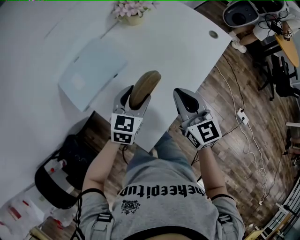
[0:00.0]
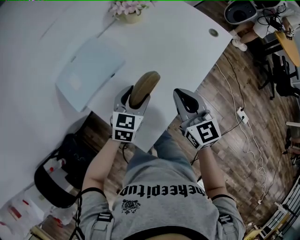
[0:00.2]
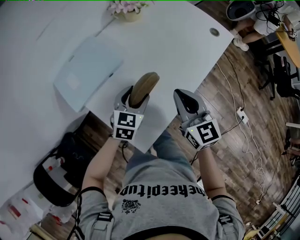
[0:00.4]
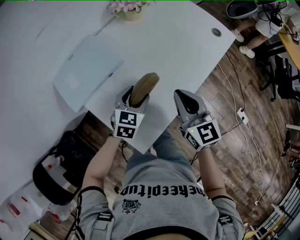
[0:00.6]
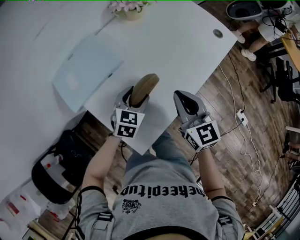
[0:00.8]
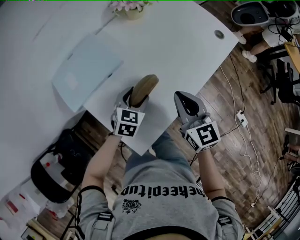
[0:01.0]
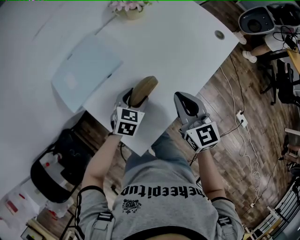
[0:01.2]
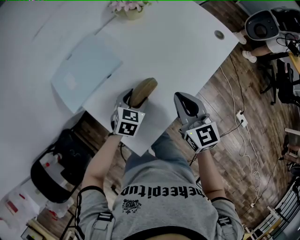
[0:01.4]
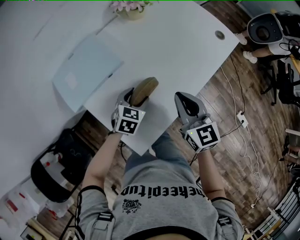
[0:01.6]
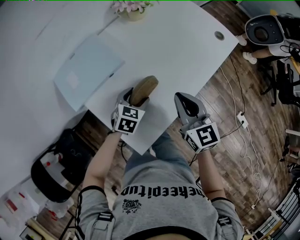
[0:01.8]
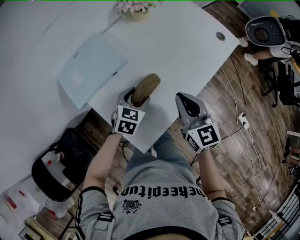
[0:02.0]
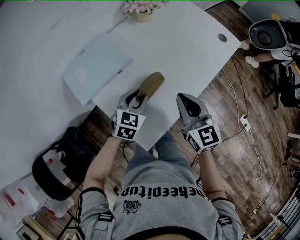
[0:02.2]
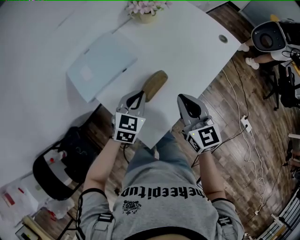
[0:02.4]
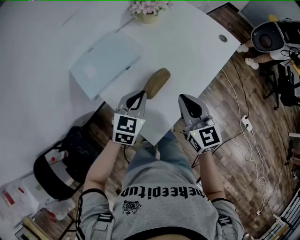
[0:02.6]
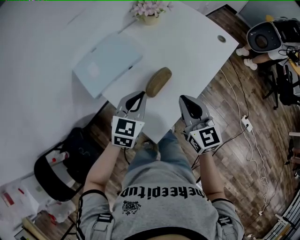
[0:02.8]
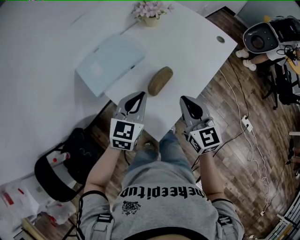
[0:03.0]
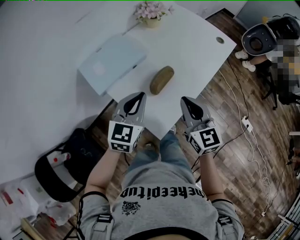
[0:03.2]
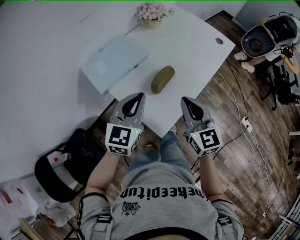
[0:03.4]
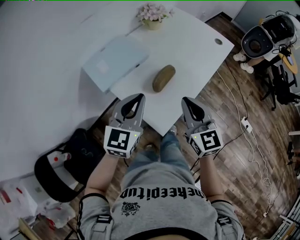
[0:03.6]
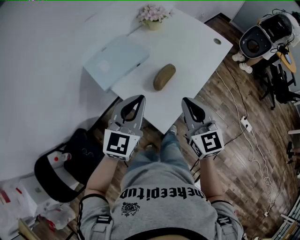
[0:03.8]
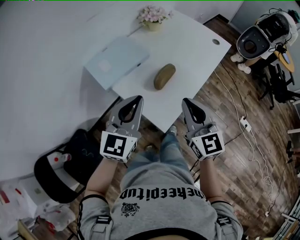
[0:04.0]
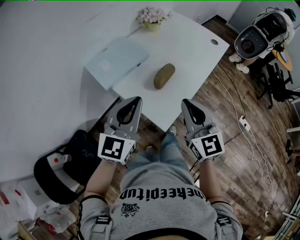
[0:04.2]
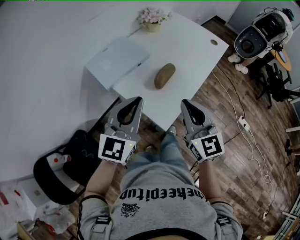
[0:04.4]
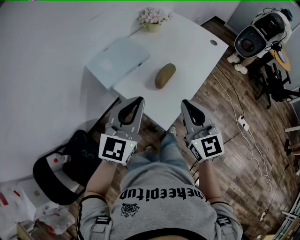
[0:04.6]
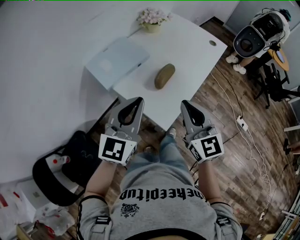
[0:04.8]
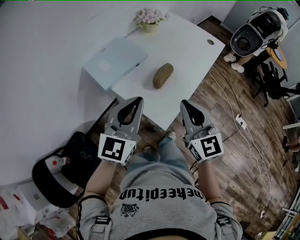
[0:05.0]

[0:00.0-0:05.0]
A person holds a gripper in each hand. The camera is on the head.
0:00.0 to 0:01.6: The right gripper moves some 5 cm. Meanwhile the left gripper heads downward, covering about 10 cm.
0:01.6 to 0:03.4: The right gripper moves backward and to the left, approximately 15 cm; the left gripper is displaced upward, backward and to the left by approximately 25 cm, tilts its fingers some 30 degrees upward, and closes its fingers.
0:03.4 to 0:05.0: The two grippers go some 10 cm backward and upward.

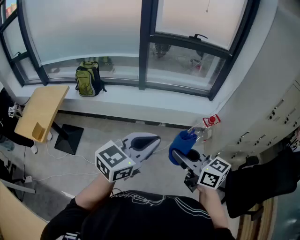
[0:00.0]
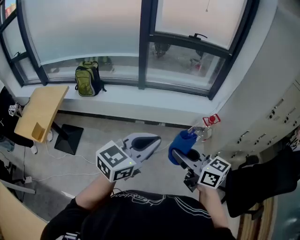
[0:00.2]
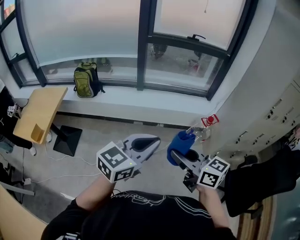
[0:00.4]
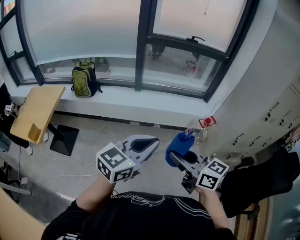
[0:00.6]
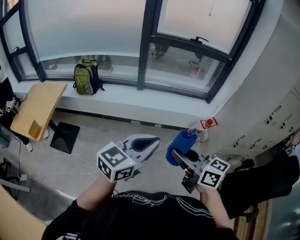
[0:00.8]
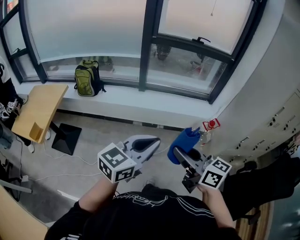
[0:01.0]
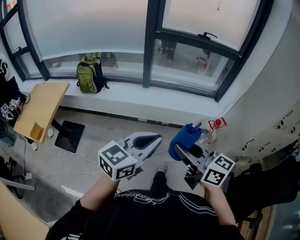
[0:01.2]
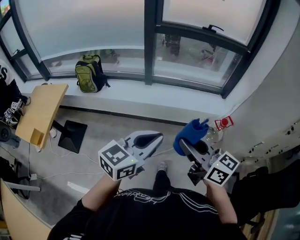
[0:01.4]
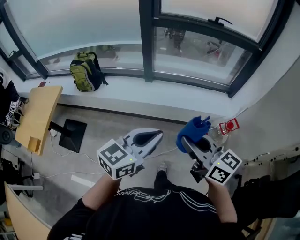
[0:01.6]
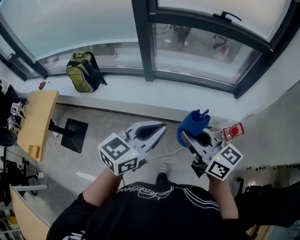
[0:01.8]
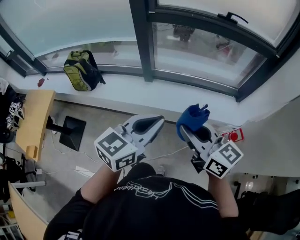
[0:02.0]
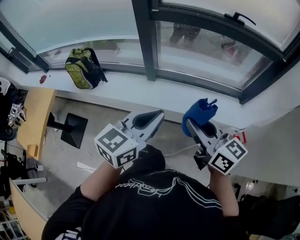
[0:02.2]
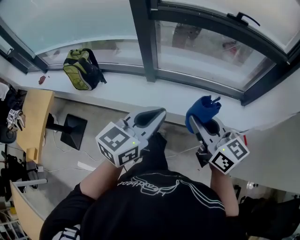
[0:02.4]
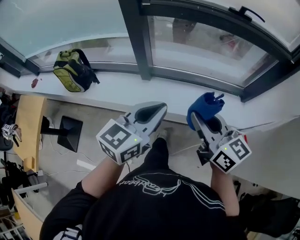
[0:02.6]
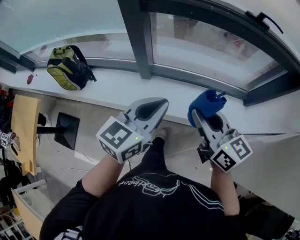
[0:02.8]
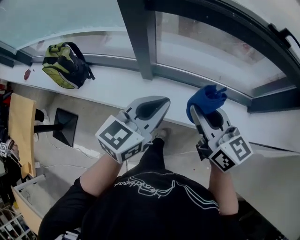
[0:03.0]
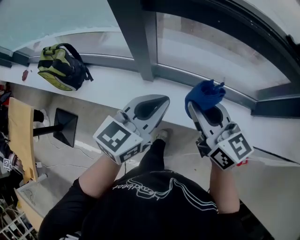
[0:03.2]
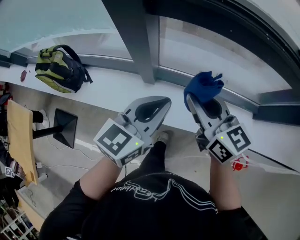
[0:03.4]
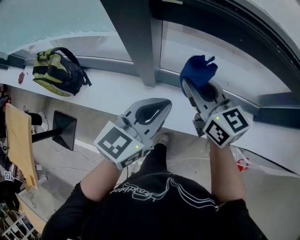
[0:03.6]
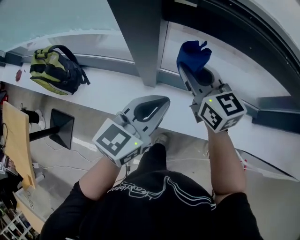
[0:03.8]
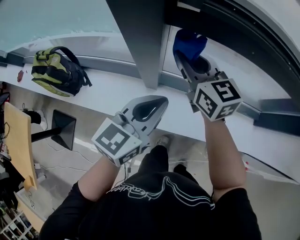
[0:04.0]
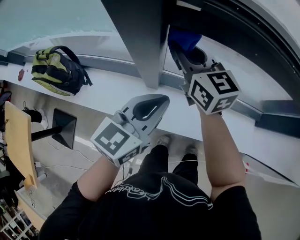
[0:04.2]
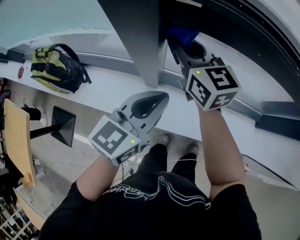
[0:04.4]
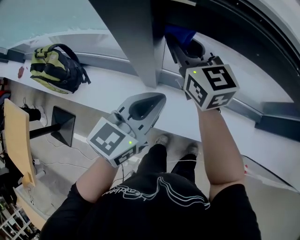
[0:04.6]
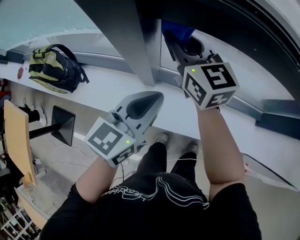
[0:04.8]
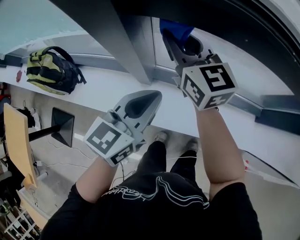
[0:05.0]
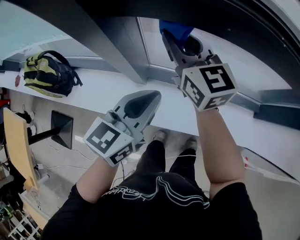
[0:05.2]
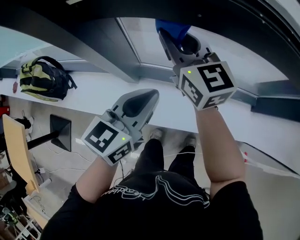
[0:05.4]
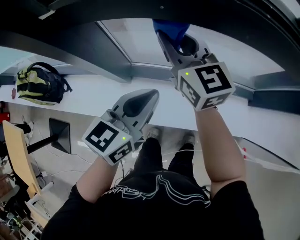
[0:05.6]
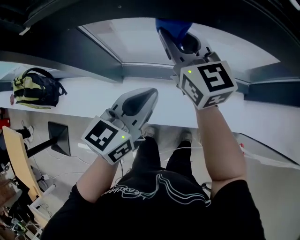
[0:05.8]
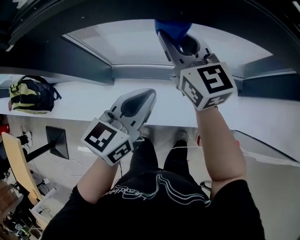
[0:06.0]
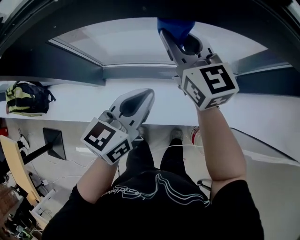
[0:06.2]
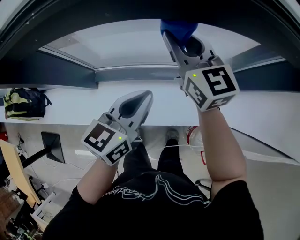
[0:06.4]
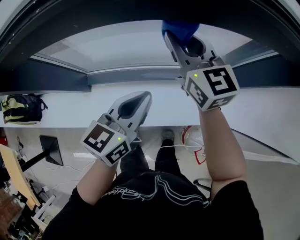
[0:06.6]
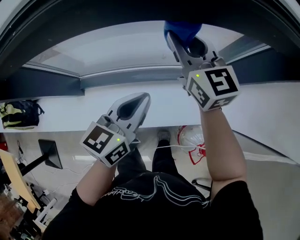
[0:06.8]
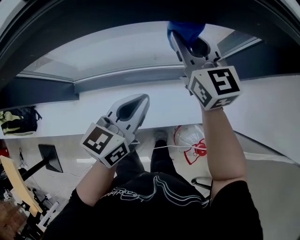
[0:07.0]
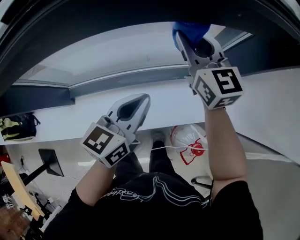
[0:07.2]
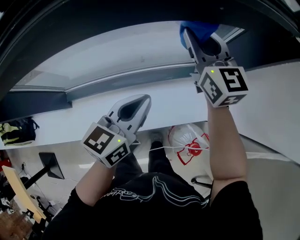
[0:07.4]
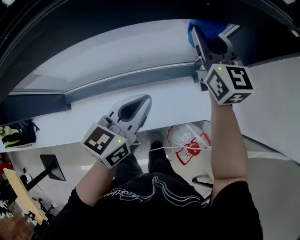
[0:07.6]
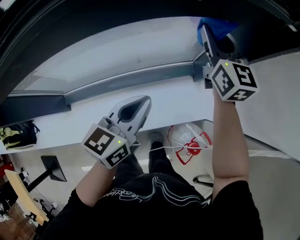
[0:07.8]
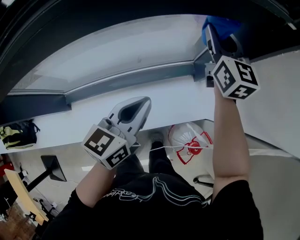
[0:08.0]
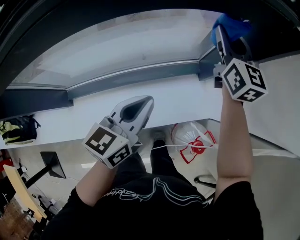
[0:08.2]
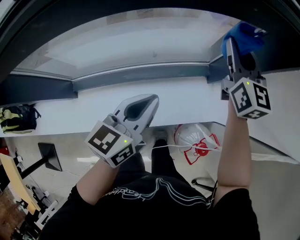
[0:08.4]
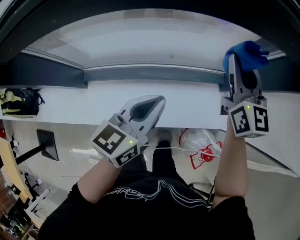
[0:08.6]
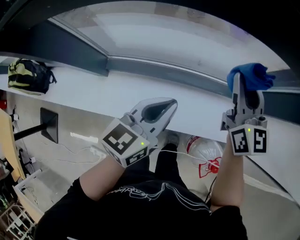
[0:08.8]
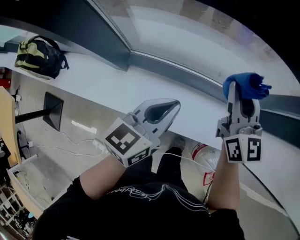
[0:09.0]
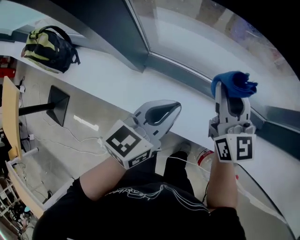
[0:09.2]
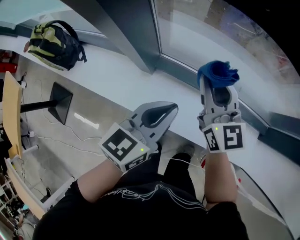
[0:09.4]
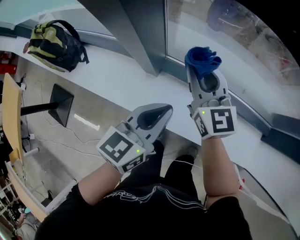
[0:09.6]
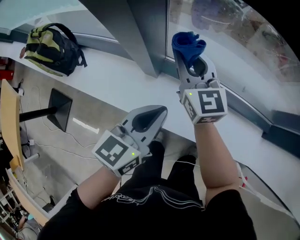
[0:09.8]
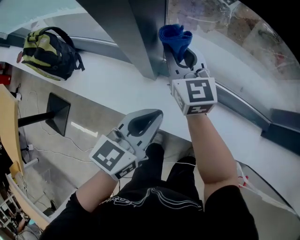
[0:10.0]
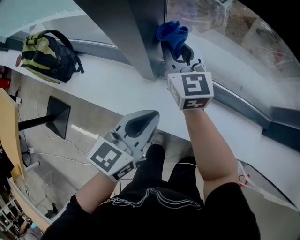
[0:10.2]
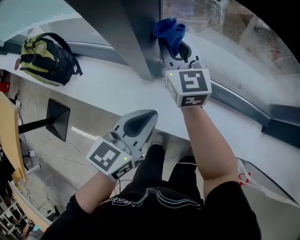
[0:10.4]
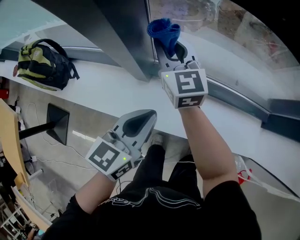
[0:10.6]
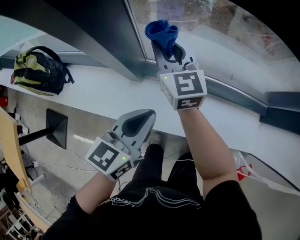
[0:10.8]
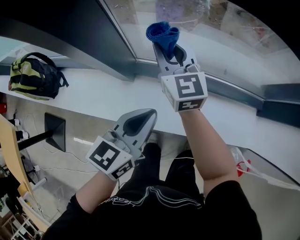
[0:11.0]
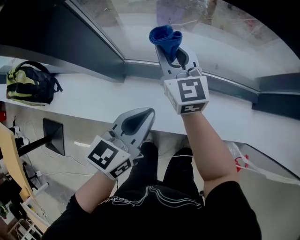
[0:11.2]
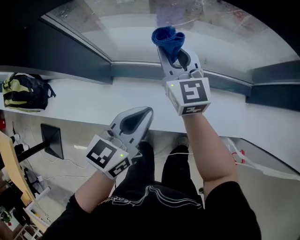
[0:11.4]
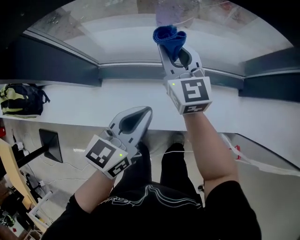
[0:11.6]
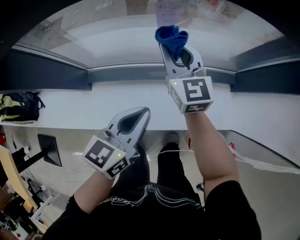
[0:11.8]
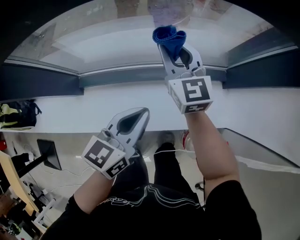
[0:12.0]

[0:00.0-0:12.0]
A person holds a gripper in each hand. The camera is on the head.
0:00.0 to 0:01.6: The two grippers go some 30 cm forward.
0:01.6 to 0:03.0: The two grippers travel together, forward, some 50 cm.
0:03.0 to 0:04.4: The right gripper is displaced forward and to the left by approximately 35 cm; the left gripper travels forward by about 15 cm.
0:04.4 to 0:06.0: Both grippers travel together to the right, about 25 cm.
0:06.0 to 0:07.6: Both grippers move to the right, approximately 35 cm. The right gripper rotates approximately 20 degrees.
0:07.6 to 0:09.0: The left gripper heads to the left, covering roughly 25 cm. The right gripper goes approximately 30 cm to the left and backward.
0:09.0 to 0:10.4: The left gripper travels to the left by some 25 cm, while the right gripper travels to the left by about 40 cm.
0:10.4 to 0:12.0: The two grippers go about 40 cm to the right.

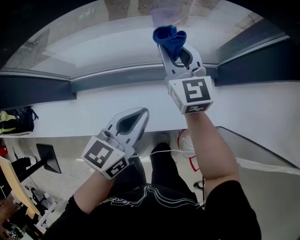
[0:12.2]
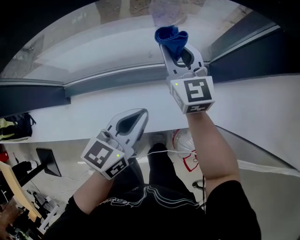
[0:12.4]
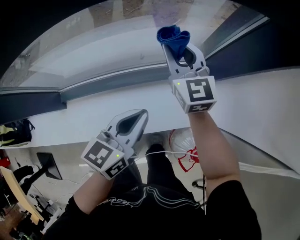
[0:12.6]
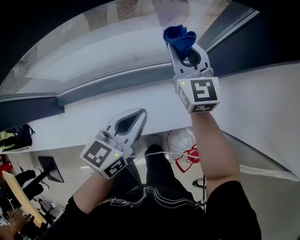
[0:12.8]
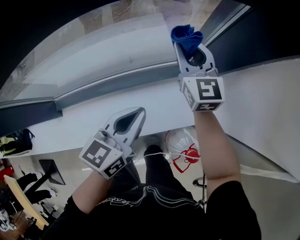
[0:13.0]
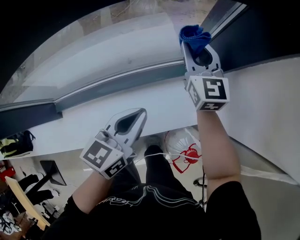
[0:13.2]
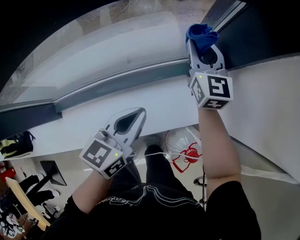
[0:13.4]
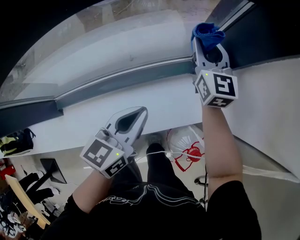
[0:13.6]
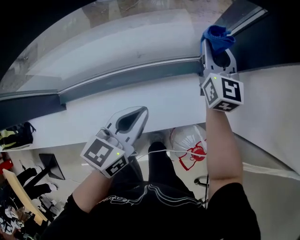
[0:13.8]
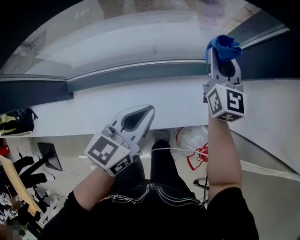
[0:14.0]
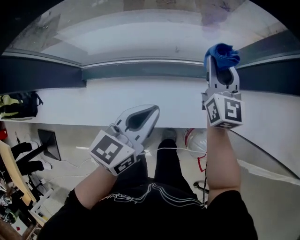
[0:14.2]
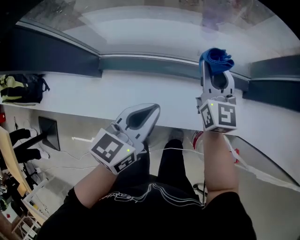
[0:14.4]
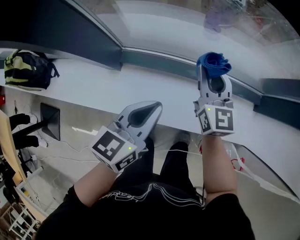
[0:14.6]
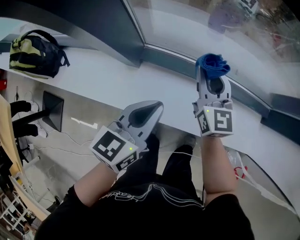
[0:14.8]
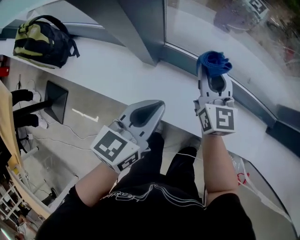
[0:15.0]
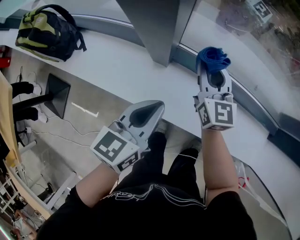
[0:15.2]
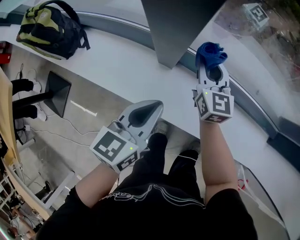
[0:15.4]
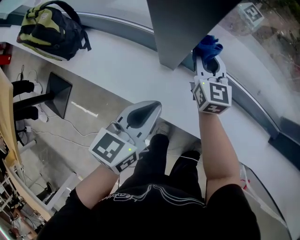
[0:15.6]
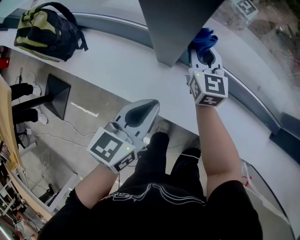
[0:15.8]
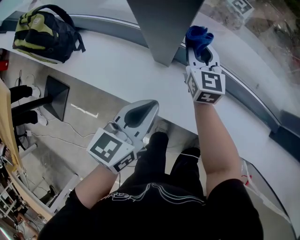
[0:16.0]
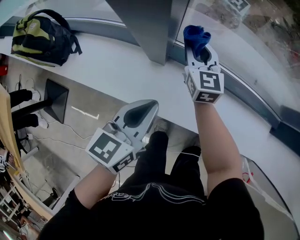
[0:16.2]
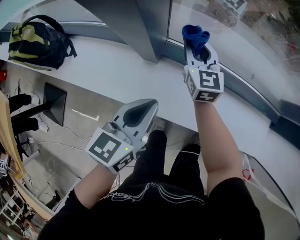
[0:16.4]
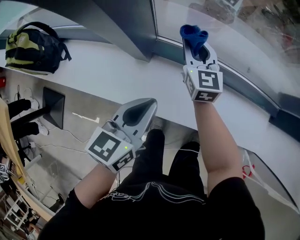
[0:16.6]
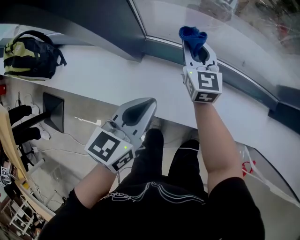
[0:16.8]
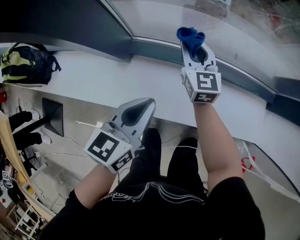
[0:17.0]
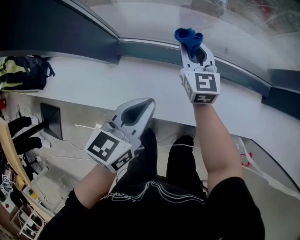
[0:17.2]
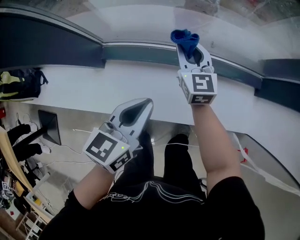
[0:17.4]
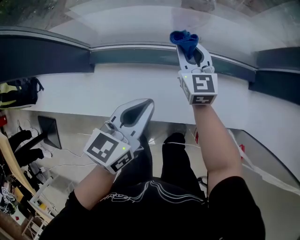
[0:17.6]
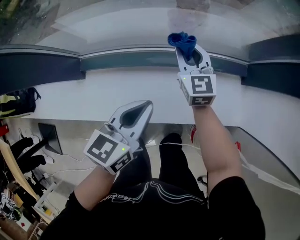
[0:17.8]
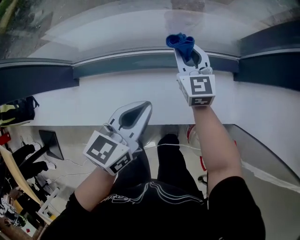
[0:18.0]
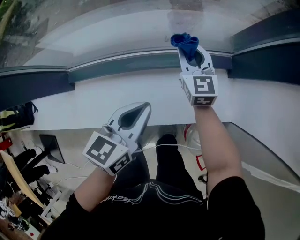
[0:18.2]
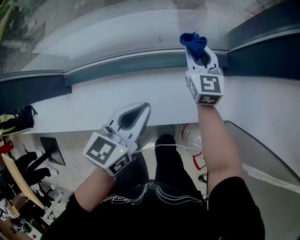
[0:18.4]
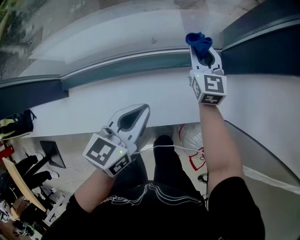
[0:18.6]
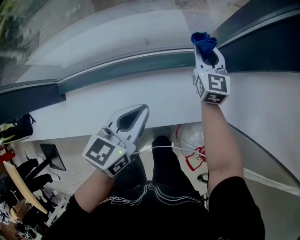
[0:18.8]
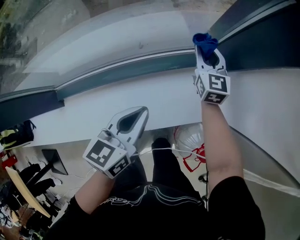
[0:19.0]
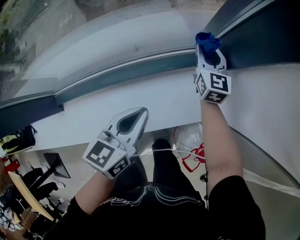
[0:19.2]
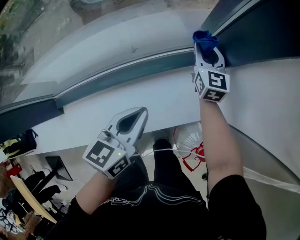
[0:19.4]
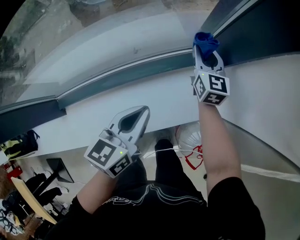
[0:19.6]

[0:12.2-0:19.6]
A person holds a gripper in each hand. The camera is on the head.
0:12.2 to 0:13.6: The right gripper heads to the right and forward, covering approximately 30 cm, and turns by some 20 degrees. The left gripper goes approximately 15 cm to the right and forward.
0:13.6 to 0:15.2: The two grippers travel together, some 70 cm. The left gripper turns by some 40 degrees. Meanwhile the right gripper rotates roughly 40 degrees.
0:15.2 to 0:16.6: The right gripper moves downward, about 5 cm, and travels to the left and back again, about 5 cm each way.
0:16.6 to 0:18.2: Both grippers are carried to the right, about 40 cm. The left gripper swivels some 20 degrees.
0:18.2 to 0:19.6: The right gripper heads to the right, covering about 20 cm, and turns by roughly 20 degrees; the left gripper heads to the right and forward, covering roughly 10 cm.
